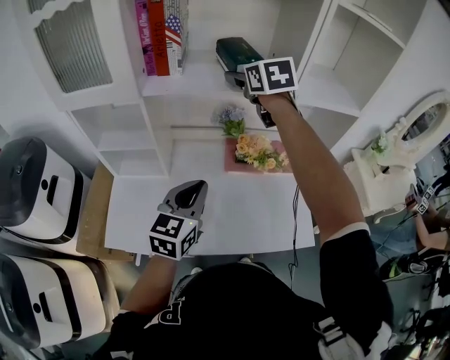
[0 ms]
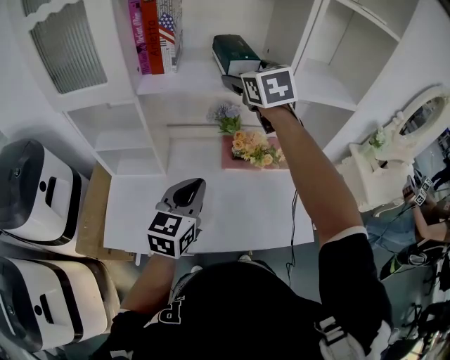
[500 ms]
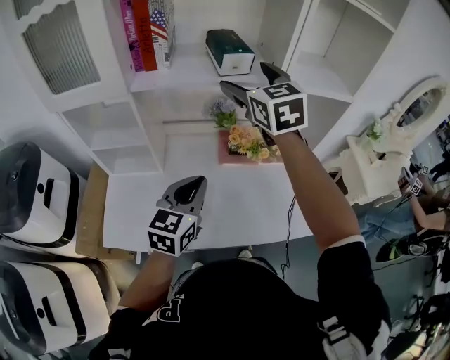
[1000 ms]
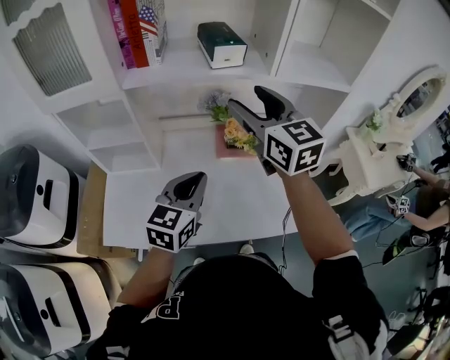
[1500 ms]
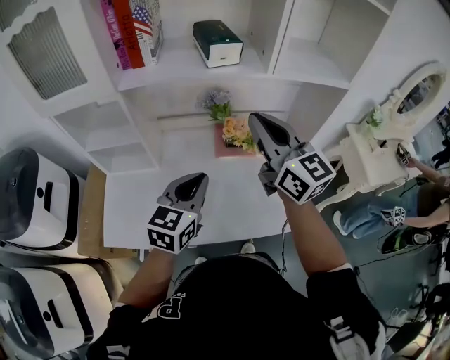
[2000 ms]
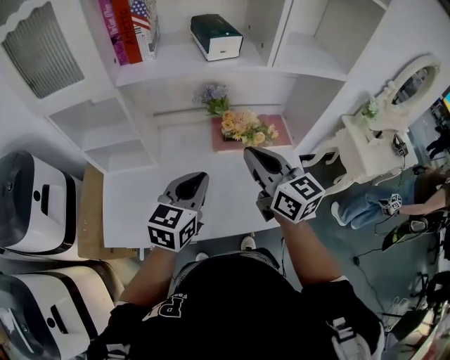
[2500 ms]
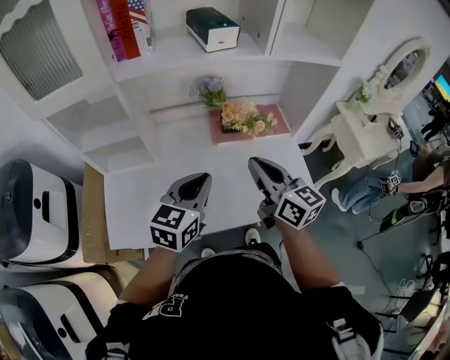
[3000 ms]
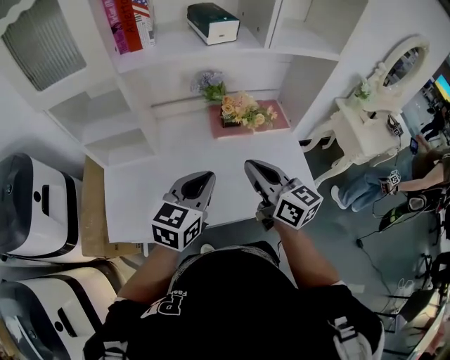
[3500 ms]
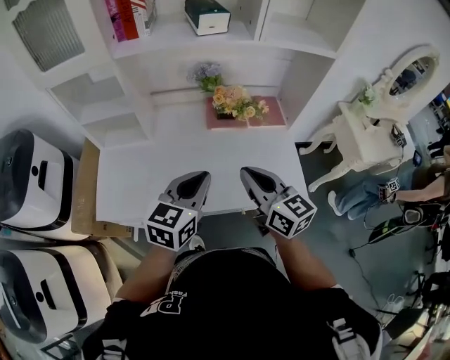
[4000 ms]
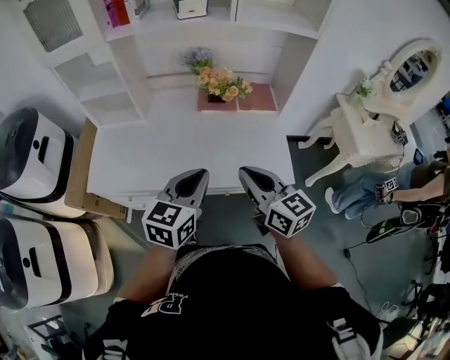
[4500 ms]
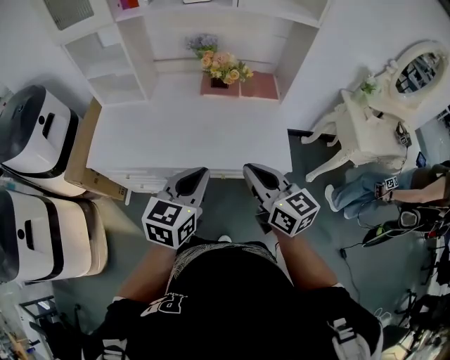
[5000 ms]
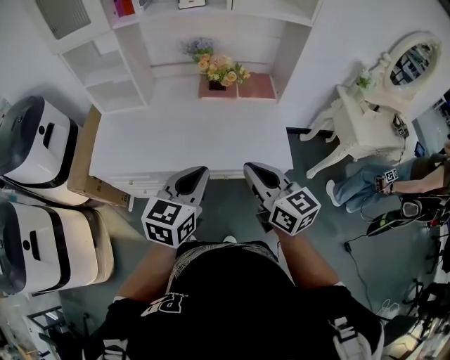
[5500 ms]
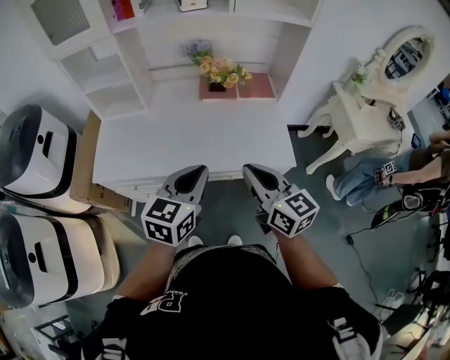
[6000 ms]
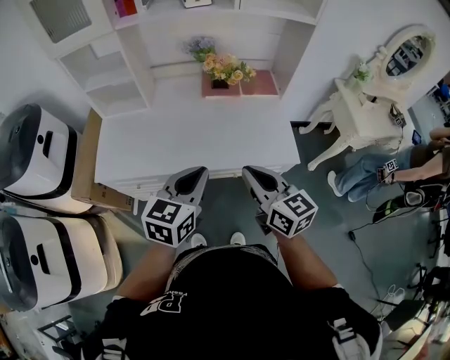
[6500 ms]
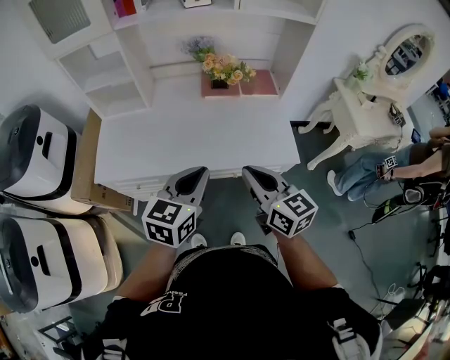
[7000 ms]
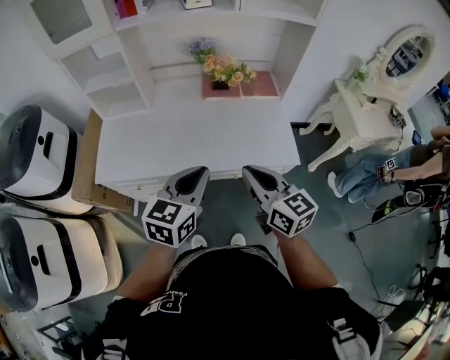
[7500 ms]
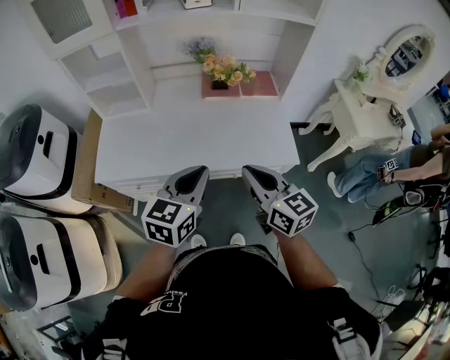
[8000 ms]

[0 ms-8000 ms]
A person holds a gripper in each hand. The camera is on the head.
0 ms to 2000 ms: The right gripper moves backward, about 20 cm, tilts its fingers about 30 degrees upward, and closes up.
2000 ms to 4000 ms: The left gripper heads backward, covering roughly 10 cm. Meanwhile the right gripper is displaced backward and downward by roughly 25 cm.
4000 ms to 6000 ms: The grippers both shift backward by approximately 15 cm.
6000 ms to 8000 ms: There are only small adjustments of the grippers.

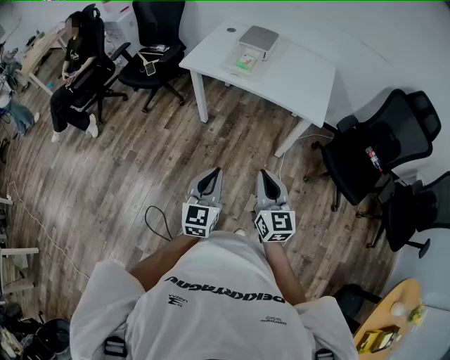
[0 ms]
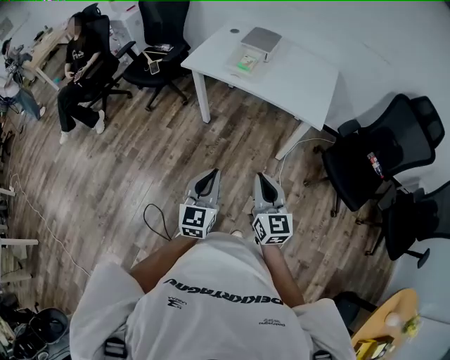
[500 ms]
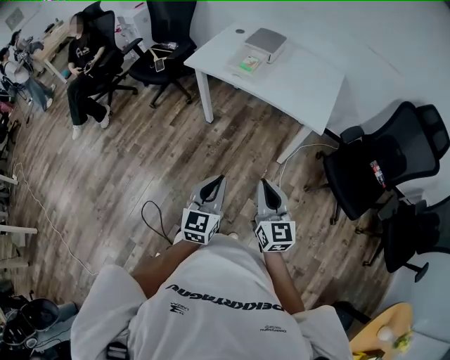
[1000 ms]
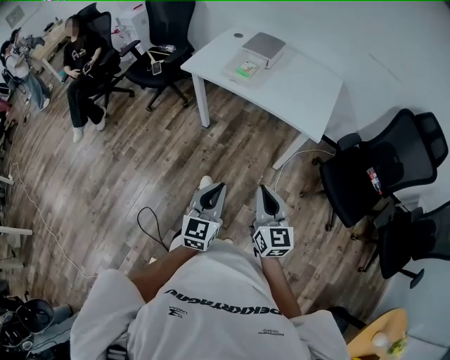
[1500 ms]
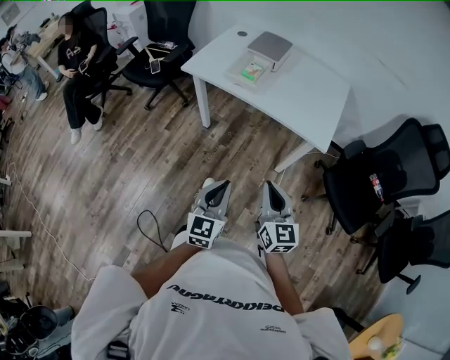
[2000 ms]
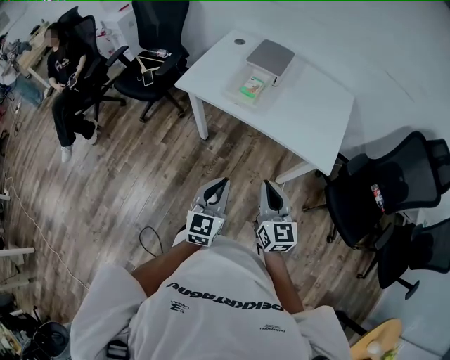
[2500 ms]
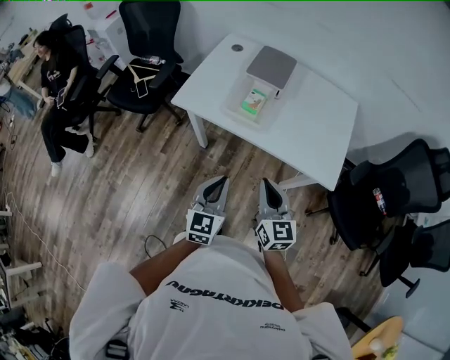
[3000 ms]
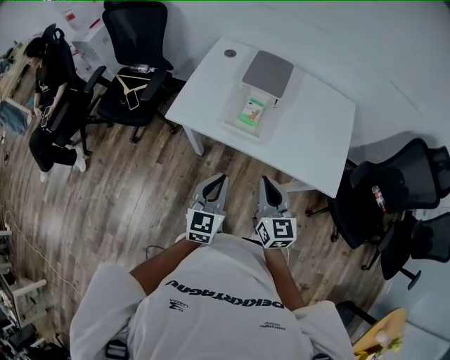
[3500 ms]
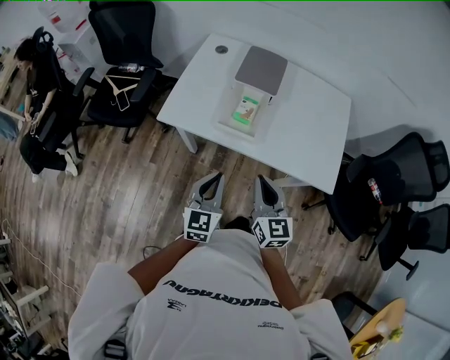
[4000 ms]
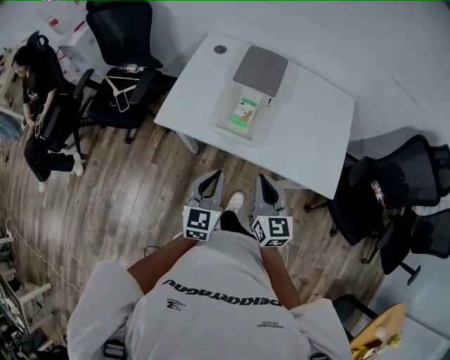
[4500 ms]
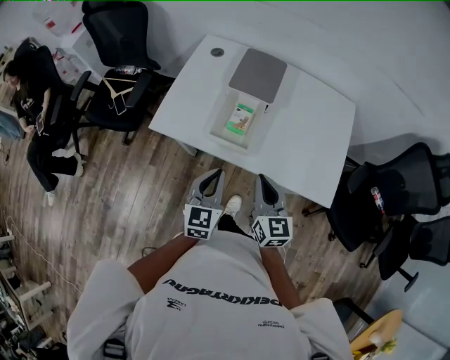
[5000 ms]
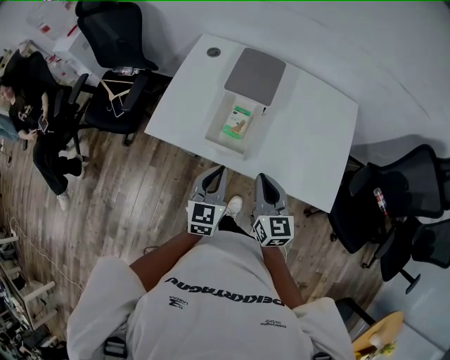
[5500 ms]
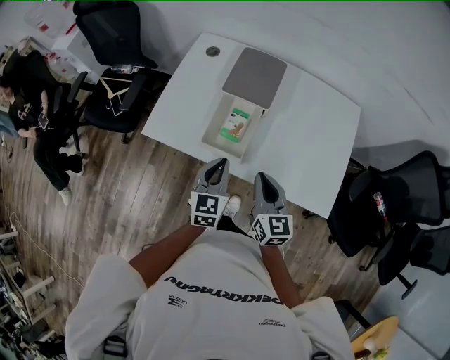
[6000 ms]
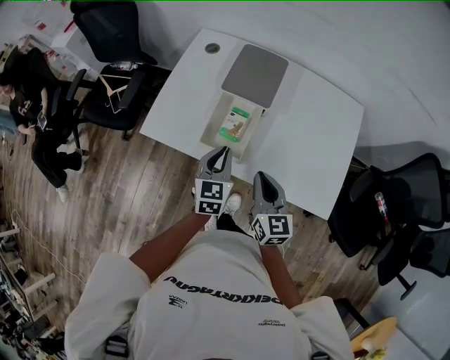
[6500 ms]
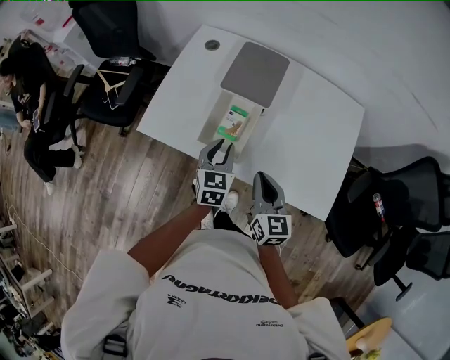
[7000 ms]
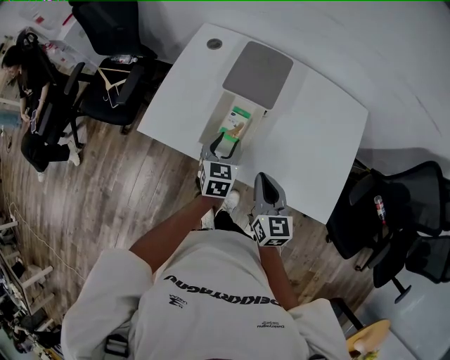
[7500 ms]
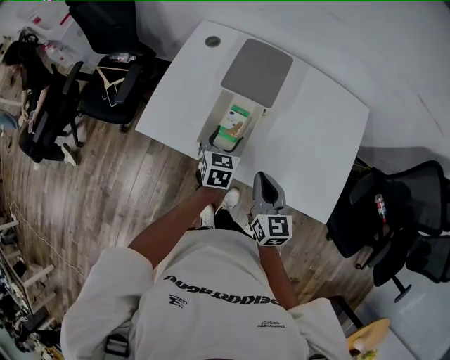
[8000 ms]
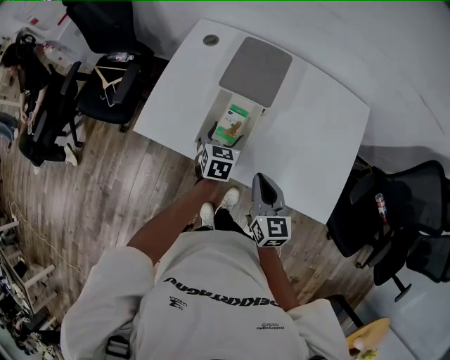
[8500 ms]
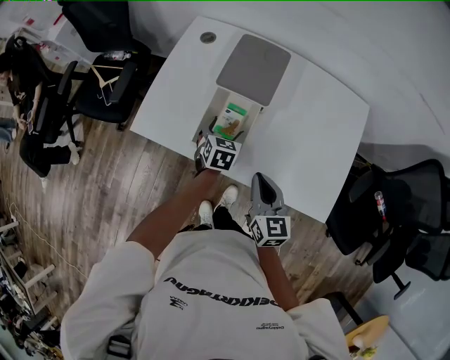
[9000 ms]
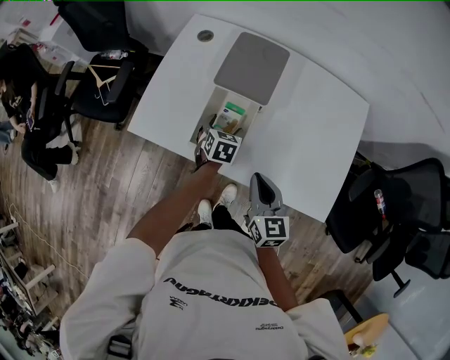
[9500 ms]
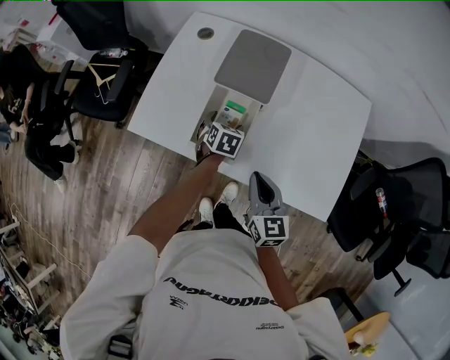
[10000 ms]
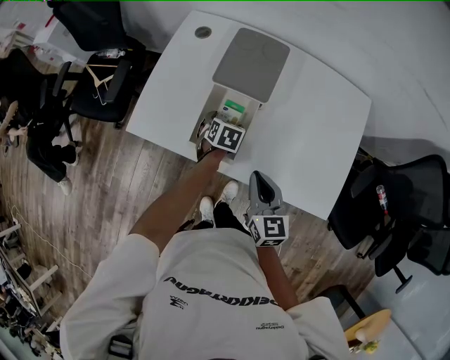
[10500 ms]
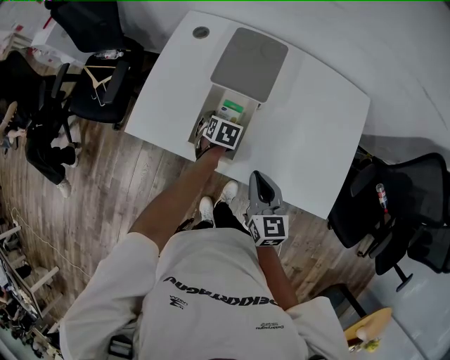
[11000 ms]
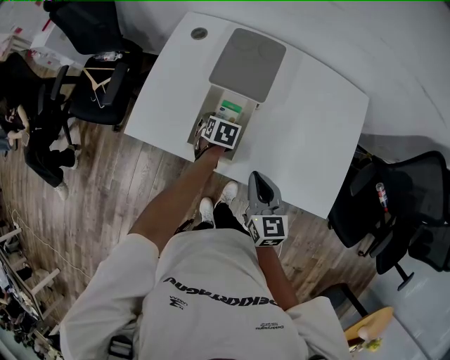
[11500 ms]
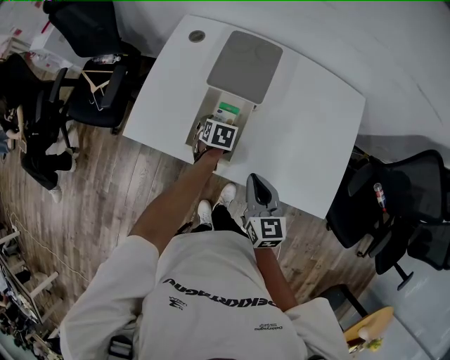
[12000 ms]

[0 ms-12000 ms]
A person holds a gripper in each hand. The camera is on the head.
0 ms to 2000 ms: Both grippers travel together forward and to the right, some 10 cm.
2000 ms to 4000 ms: Both grippers move forward, roughly 35 cm.
4000 ms to 6000 ms: The two grippers go about 15 cm forward and to the right.
6000 ms to 8000 ms: The left gripper travels forward and downward by some 15 cm, and opens its fingers.
8000 ms to 10000 ms: The left gripper goes roughly 10 cm downward and forward.
10000 ms to 12000 ms: The grippers stay close to where they were, moving slightly.

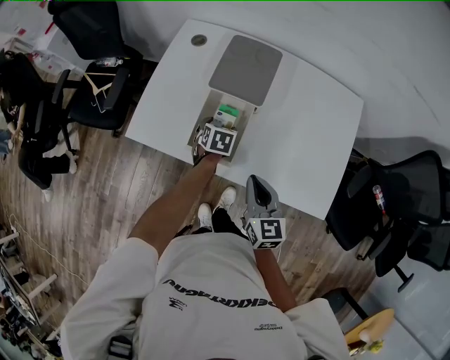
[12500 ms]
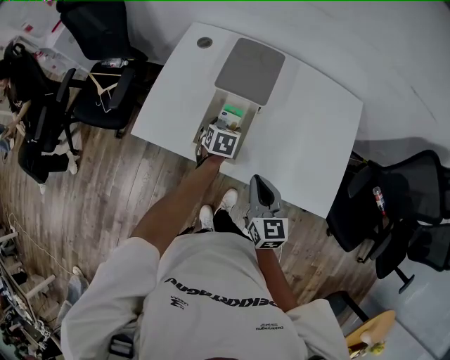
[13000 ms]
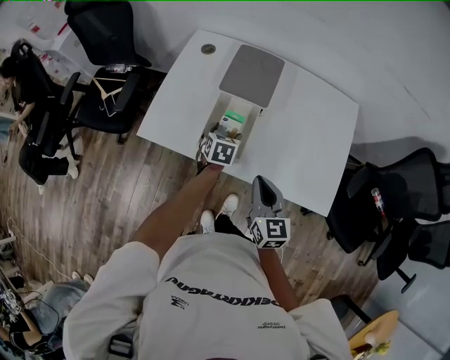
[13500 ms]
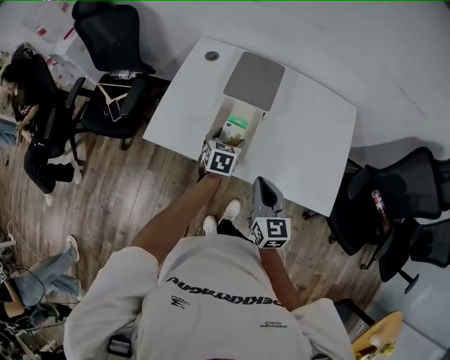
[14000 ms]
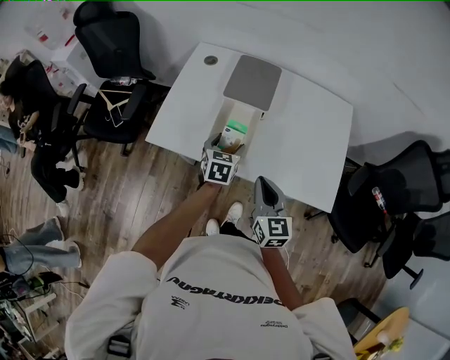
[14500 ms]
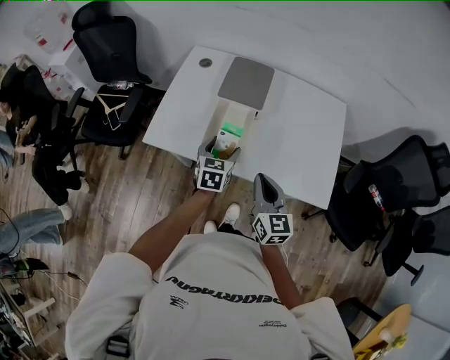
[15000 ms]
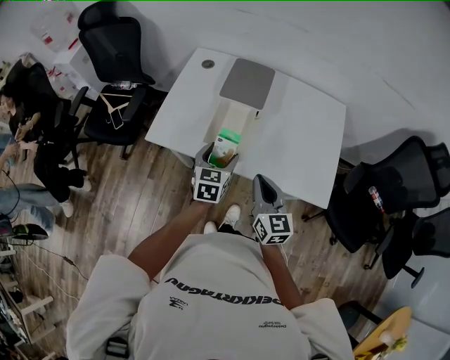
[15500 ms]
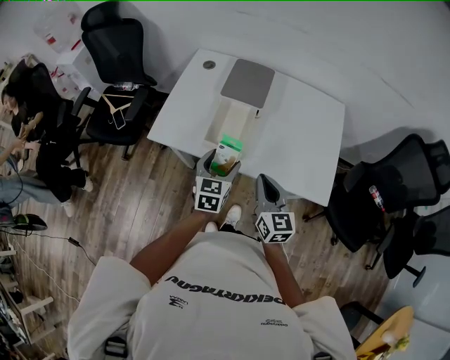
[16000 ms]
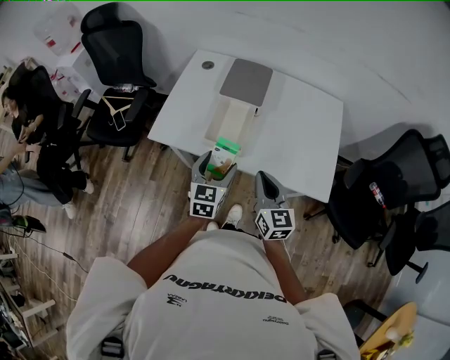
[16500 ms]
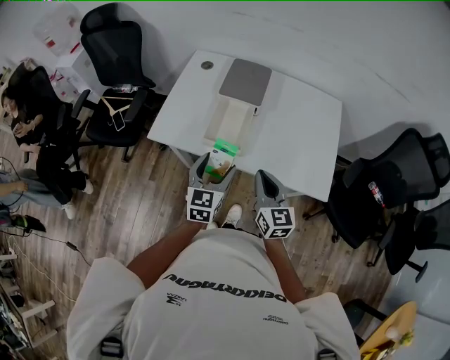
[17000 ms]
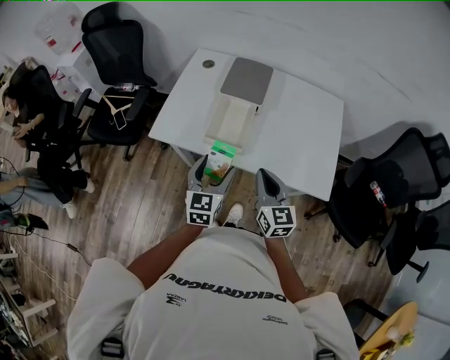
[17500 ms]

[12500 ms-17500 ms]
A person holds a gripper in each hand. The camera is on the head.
12500 ms to 15000 ms: The left gripper goes roughly 20 cm upward and backward, and turns by approximately 30 degrees. The right gripper is displaced upward and backward by about 10 cm.
15000 ms to 17500 ms: The left gripper shifts roughly 15 cm backward and upward.

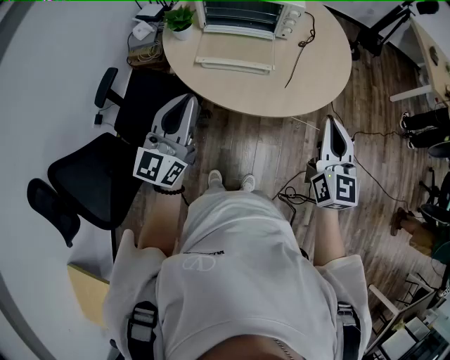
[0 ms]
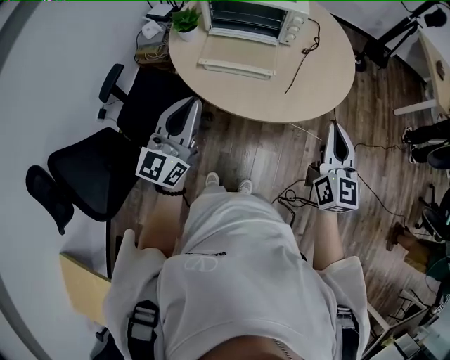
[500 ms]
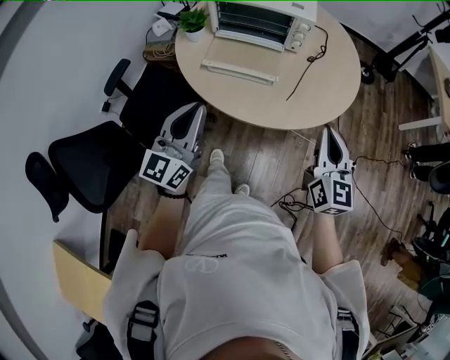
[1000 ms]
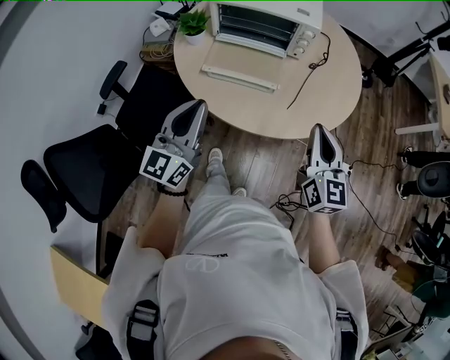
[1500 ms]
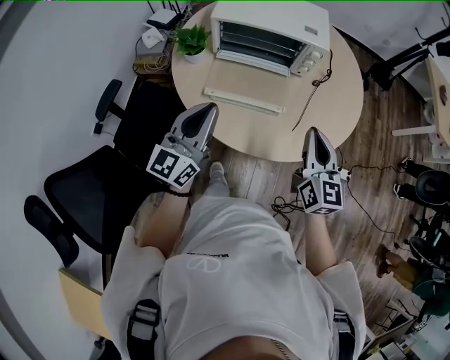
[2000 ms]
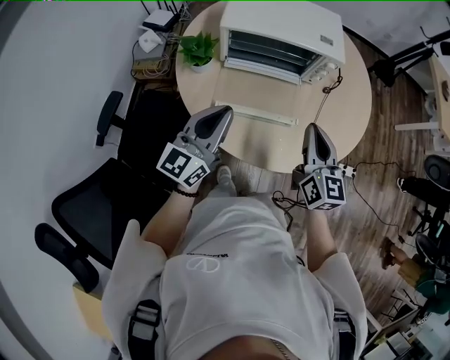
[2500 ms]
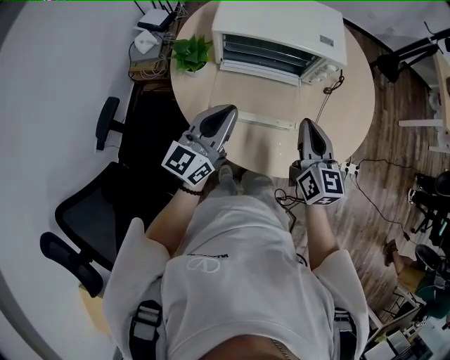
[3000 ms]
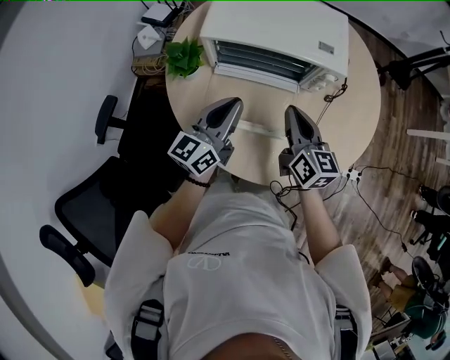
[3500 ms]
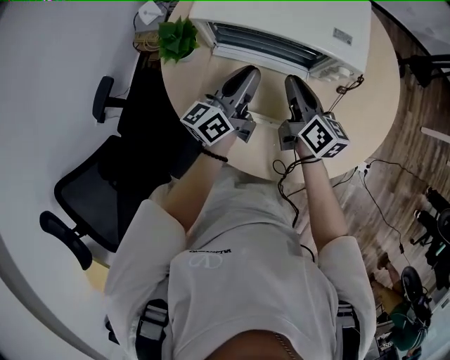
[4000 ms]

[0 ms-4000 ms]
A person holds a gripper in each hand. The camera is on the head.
0 ms to 2000 ms: The left gripper moves forward, approximately 15 cm. Meanwhile the right gripper is displaced forward and to the left by roughly 15 cm.
2000 ms to 4000 ms: Both grippers travel together forward and downward, some 30 cm. The right gripper changes its angle by approximately 40 degrees, while the left gripper rotates about 30 degrees.
